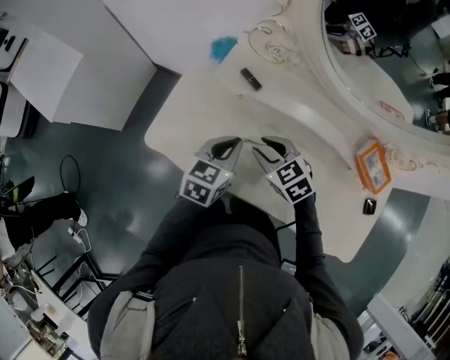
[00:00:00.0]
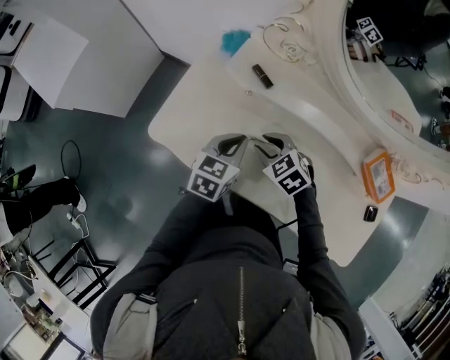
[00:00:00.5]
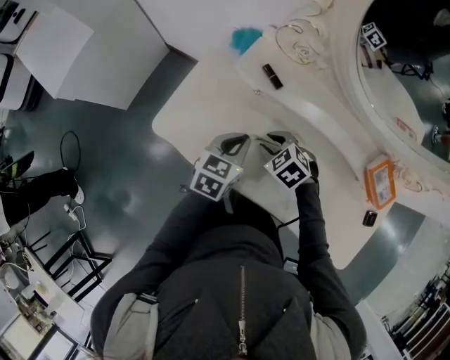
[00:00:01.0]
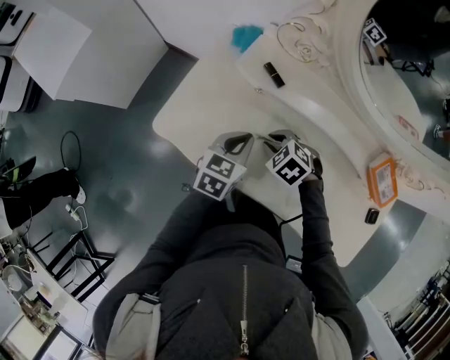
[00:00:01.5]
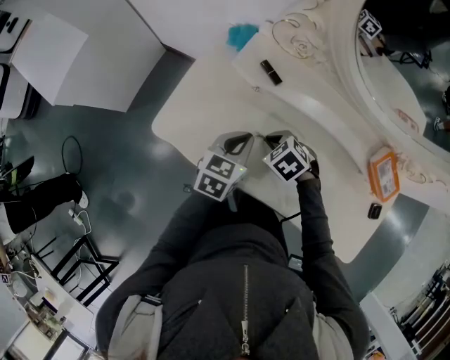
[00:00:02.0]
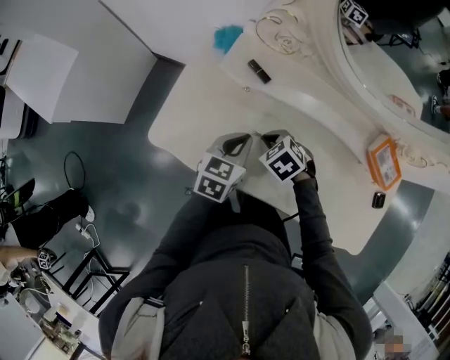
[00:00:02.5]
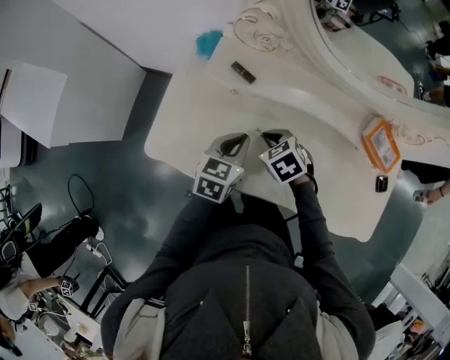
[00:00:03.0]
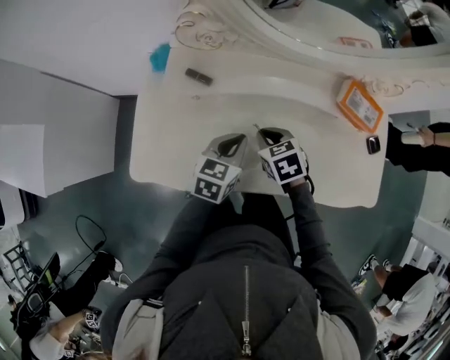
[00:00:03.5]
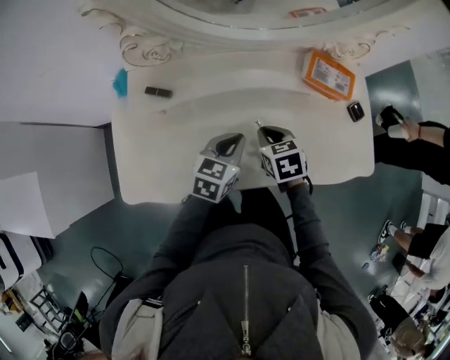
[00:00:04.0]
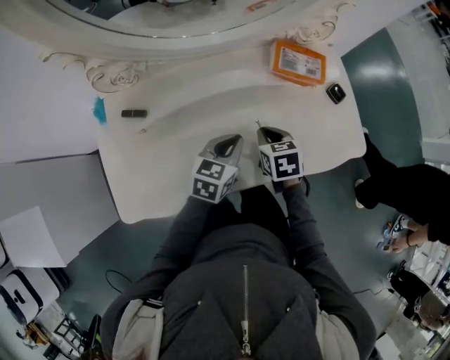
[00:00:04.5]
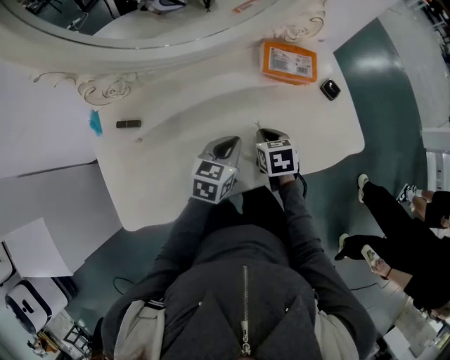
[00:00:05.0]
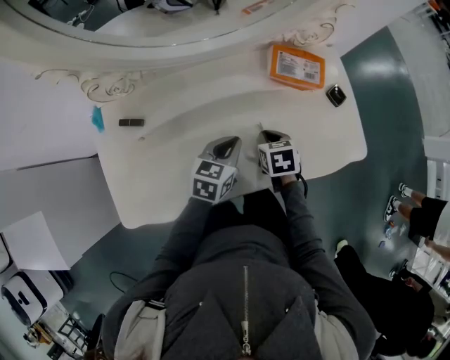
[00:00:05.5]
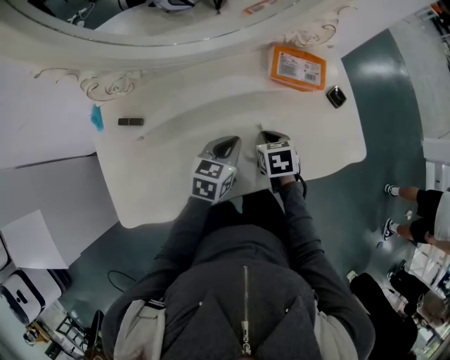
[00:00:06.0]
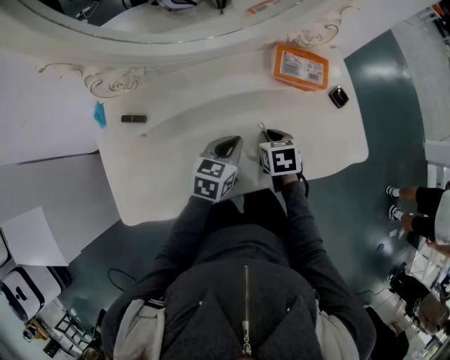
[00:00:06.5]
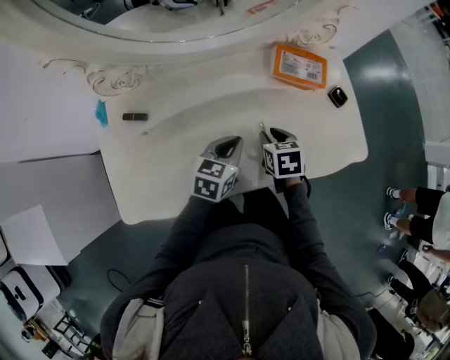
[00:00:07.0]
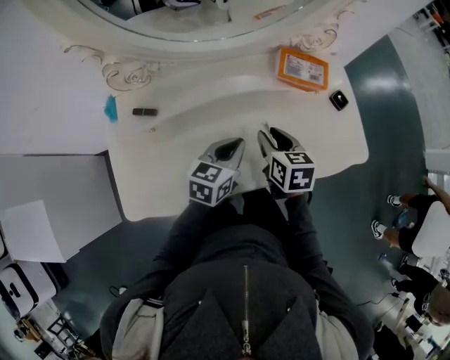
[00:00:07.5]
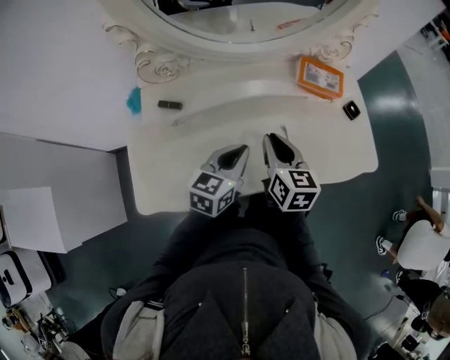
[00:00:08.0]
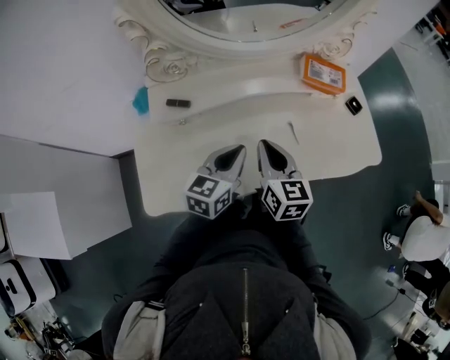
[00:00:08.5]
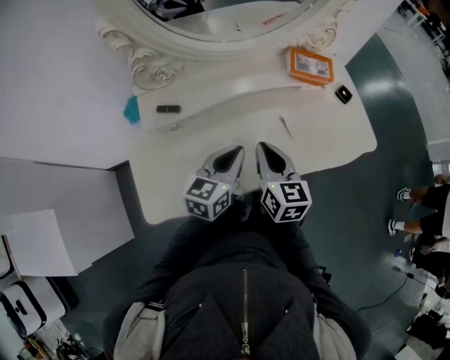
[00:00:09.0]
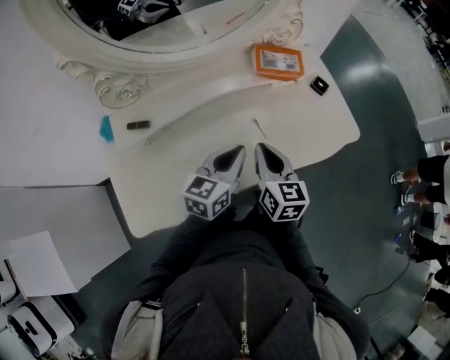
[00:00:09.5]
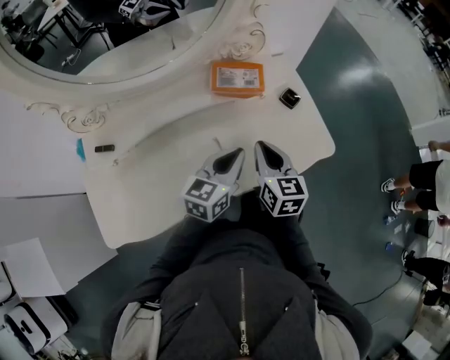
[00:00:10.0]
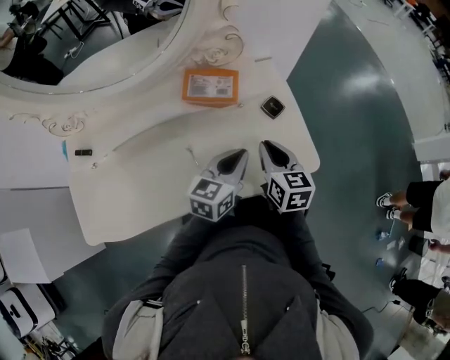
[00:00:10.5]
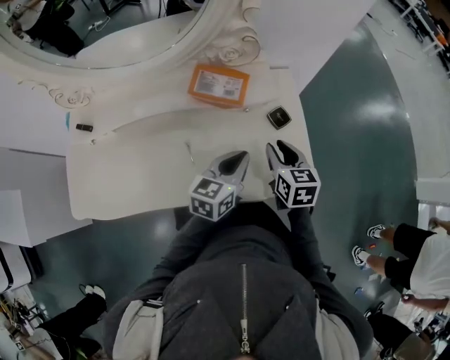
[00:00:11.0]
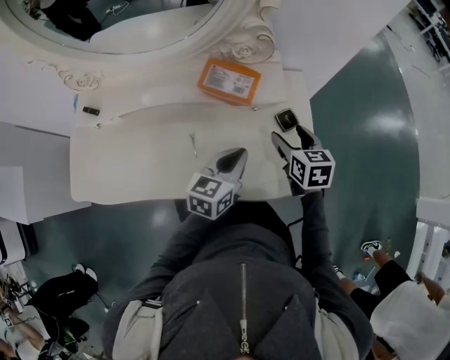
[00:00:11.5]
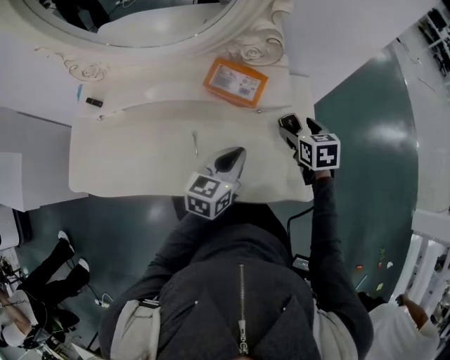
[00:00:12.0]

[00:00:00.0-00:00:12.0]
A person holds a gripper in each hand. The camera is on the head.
00:00:00.0 to 00:00:02.0: The right gripper moves downward, approximately 5 cm, and swivels approximately 30 degrees.
00:00:02.0 to 00:00:04.0: The left gripper moves about 15 cm, and rotates roughly 30 degrees; the right gripper shifts by about 15 cm, and twists some 60 degrees clockwise, seen from behind.
00:00:04.0 to 00:00:06.0: The right gripper moves to the right, about 10 cm, while the left gripper is displaced to the right by about 5 cm.
00:00:06.0 to 00:00:08.0: The left gripper travels upward, backward and to the left by some 10 cm. Meanwhile the right gripper moves upward and to the left, some 15 cm, and tilts its fingers approximately 40 degrees upward.
00:00:08.0 to 00:00:10.0: Both grippers travel together to the right, some 20 cm.
00:00:10.0 to 00:00:12.0: The left gripper is displaced to the right and forward by about 10 cm, and rotates about 20 degrees. Meanwhile the right gripper heads forward and to the right, covering roughly 25 cm, rotates roughly 40 degrees, and opens its fingers.

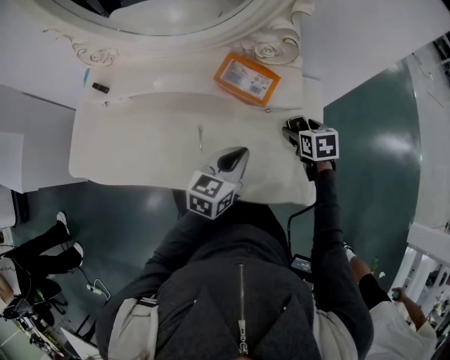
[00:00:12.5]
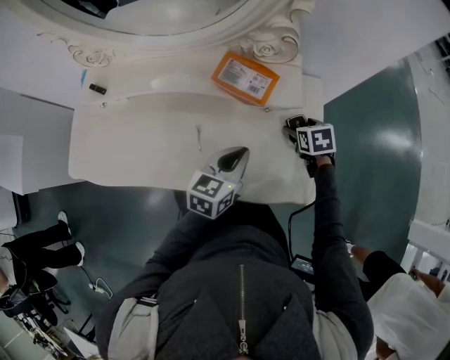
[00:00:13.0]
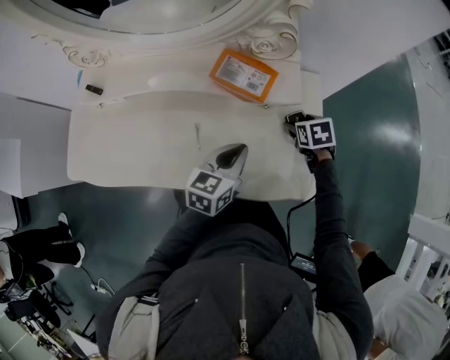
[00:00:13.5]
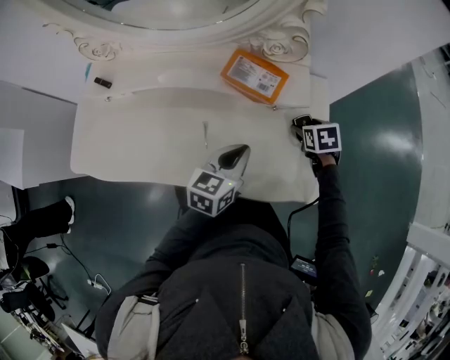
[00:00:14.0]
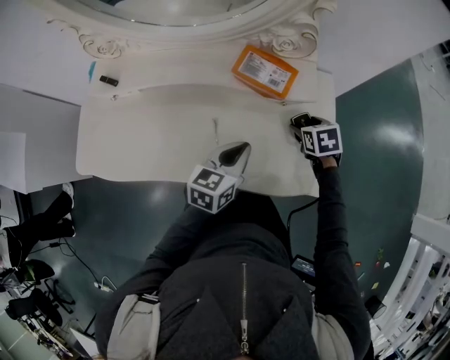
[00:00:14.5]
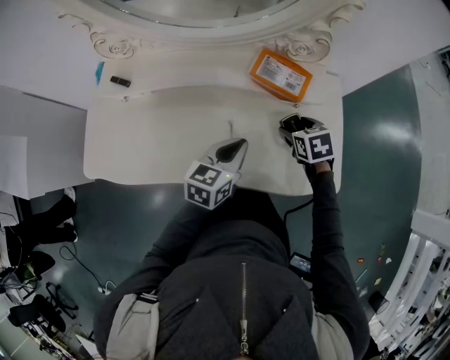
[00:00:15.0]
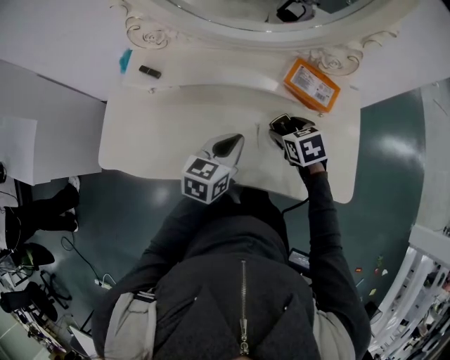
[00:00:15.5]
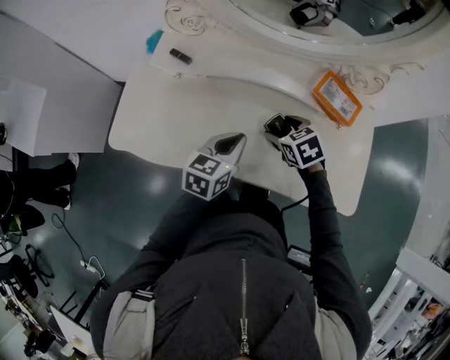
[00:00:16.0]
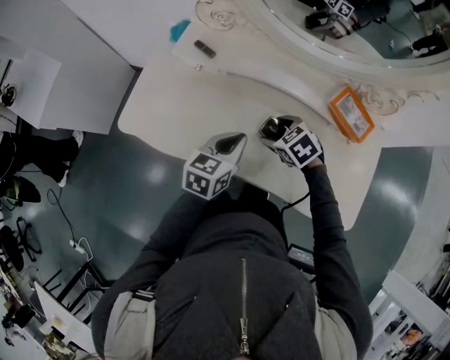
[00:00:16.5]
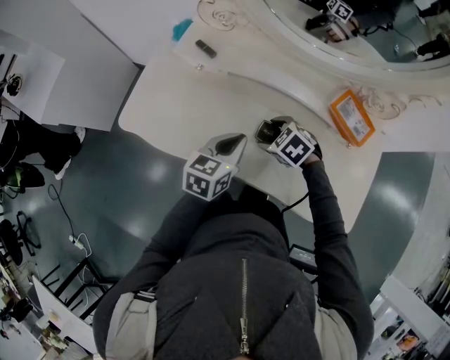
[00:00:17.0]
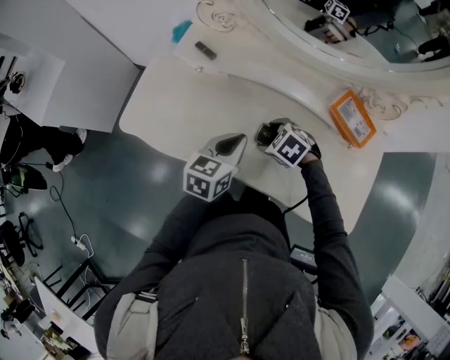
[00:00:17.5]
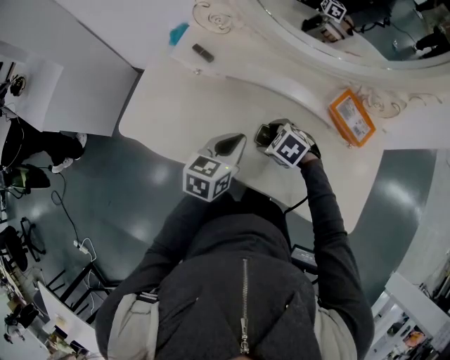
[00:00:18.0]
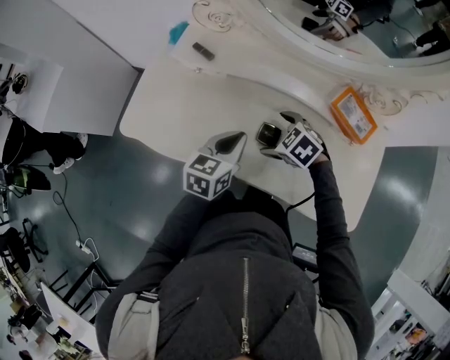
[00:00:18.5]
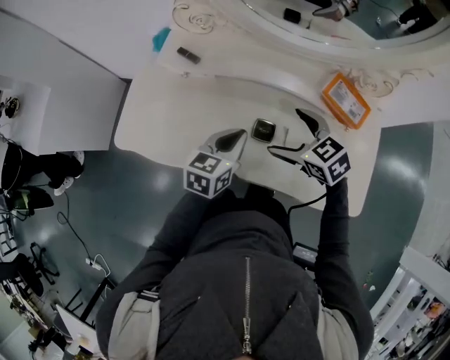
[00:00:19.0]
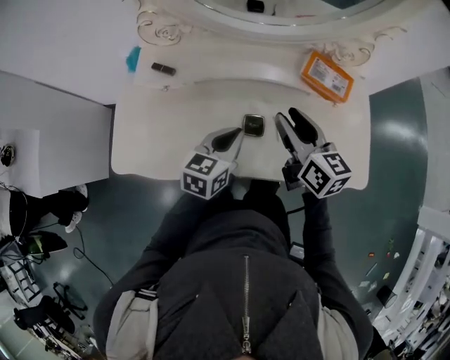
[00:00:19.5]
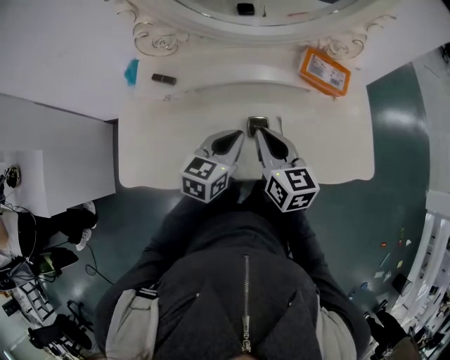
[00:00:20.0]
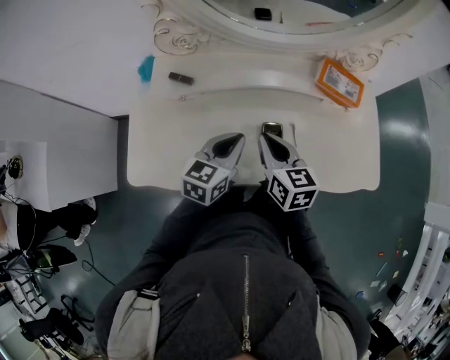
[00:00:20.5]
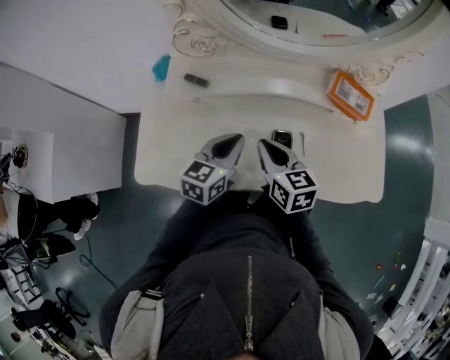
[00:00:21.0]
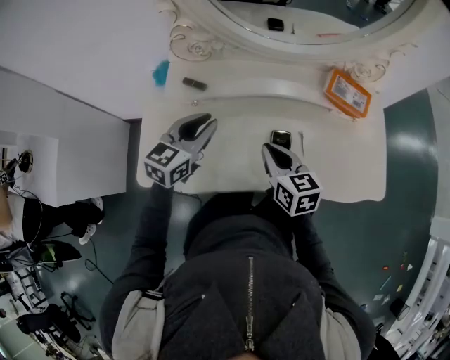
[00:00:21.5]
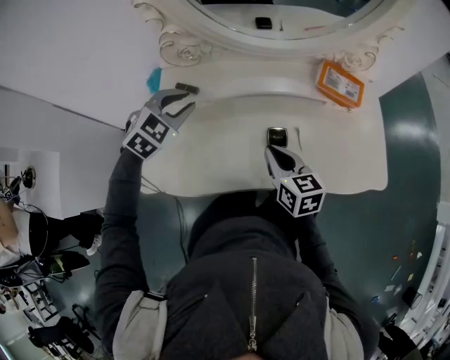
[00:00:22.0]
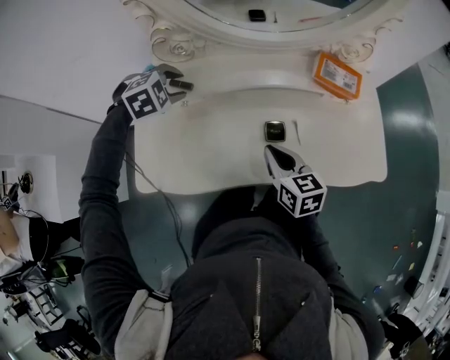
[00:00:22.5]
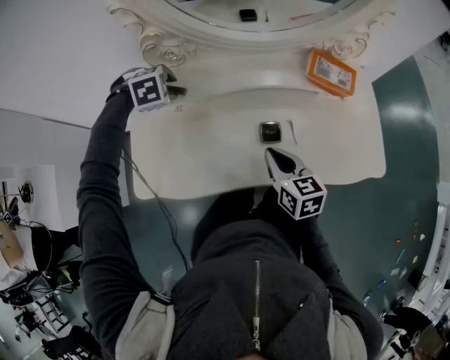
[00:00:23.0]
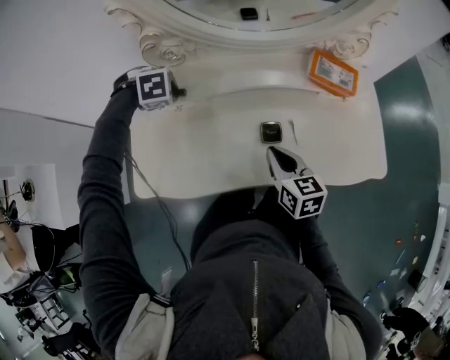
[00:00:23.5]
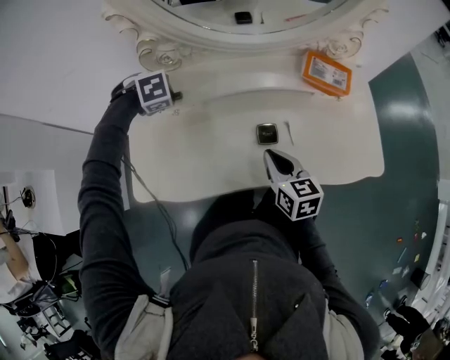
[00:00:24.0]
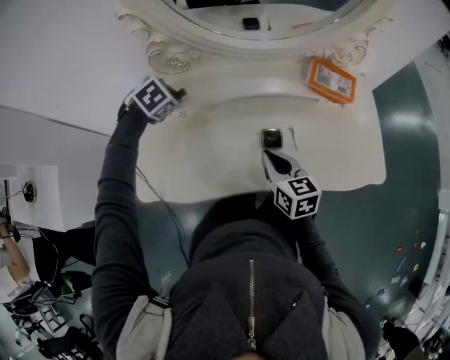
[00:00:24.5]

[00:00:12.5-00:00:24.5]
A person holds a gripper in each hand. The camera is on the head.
00:00:12.5 to 00:00:14.5: The grippers move only a little.
00:00:14.5 to 00:00:16.5: The left gripper ends up some 25 cm from where it was, while the right gripper shifts by some 35 cm, and rolls counterclockwise, seen from behind, by some 40 degrees.
00:00:16.5 to 00:00:18.5: The grippers stay close to where they were, moving slightly.
00:00:18.5 to 00:00:20.5: The left gripper turns by roughly 20 degrees. The right gripper is displaced upward by about 10 cm, points its fingers roughly 40 degrees further upward, and closes up.
00:00:20.5 to 00:00:22.5: The left gripper heads to the left and forward, covering some 20 cm, rolls clockwise, seen from behind, by some 60 degrees, and opens its fingers.
00:00:22.5 to 00:00:24.5: The left gripper rotates roughly 30 degrees, and closes up.

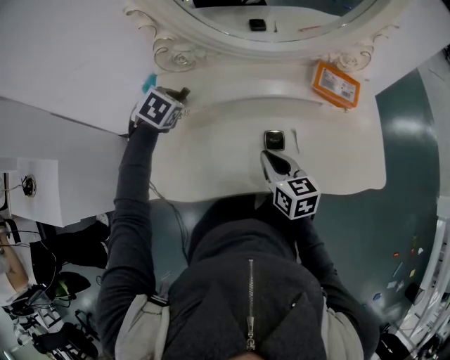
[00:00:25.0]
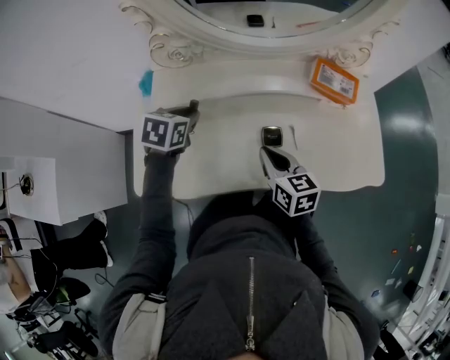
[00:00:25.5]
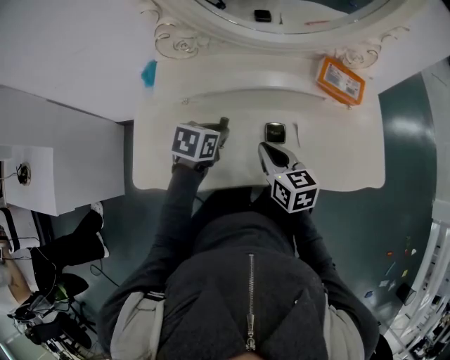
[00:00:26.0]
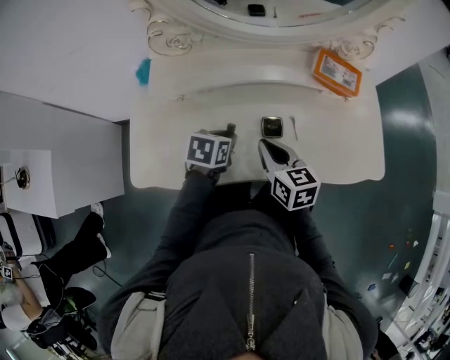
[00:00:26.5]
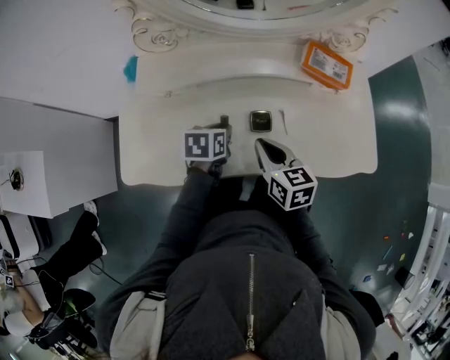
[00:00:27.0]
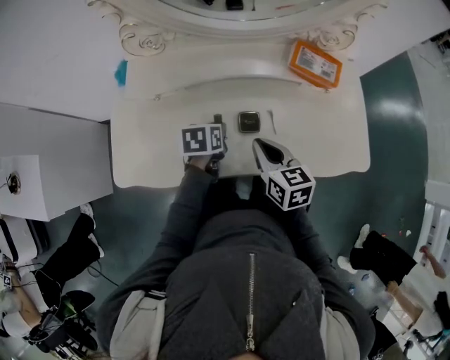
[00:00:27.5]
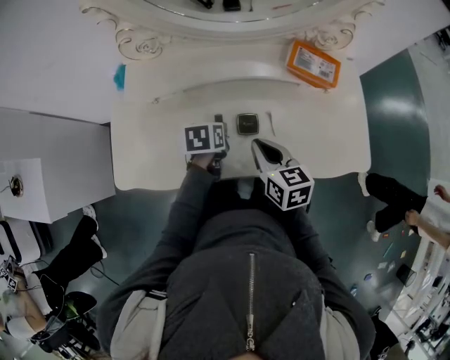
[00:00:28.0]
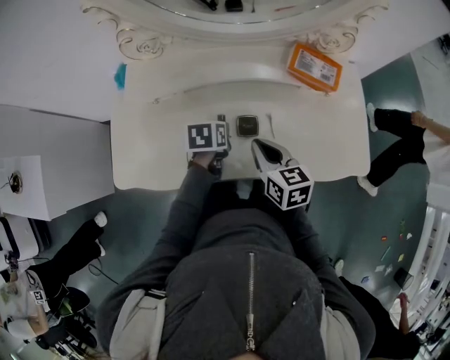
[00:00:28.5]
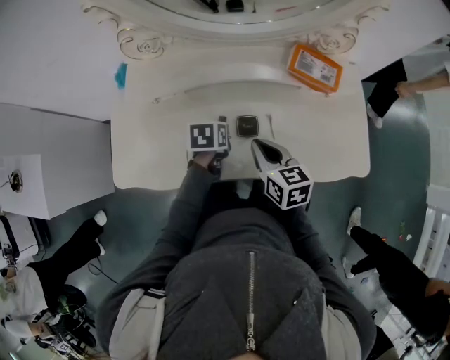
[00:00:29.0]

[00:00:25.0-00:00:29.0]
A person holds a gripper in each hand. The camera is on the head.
00:00:25.0 to 00:00:27.0: The left gripper moves to the right, backward and downward, roughly 20 cm, and rolls counterclockwise, seen from behind, by roughly 40 degrees.
00:00:27.0 to 00:00:29.0: There are only small adjustments of the grippers.
